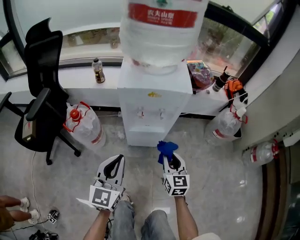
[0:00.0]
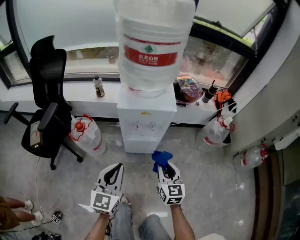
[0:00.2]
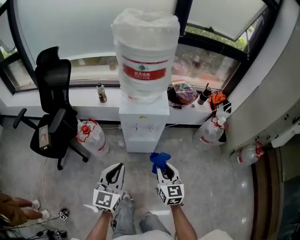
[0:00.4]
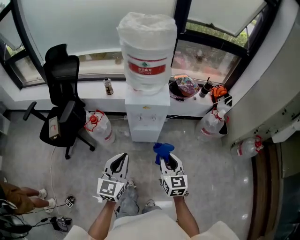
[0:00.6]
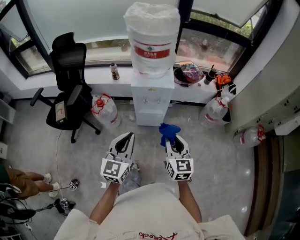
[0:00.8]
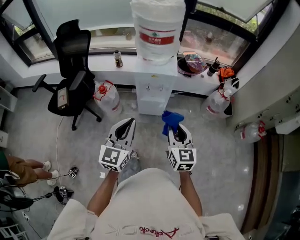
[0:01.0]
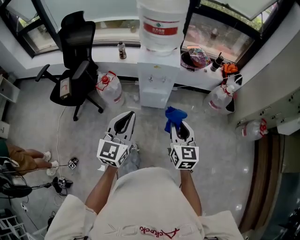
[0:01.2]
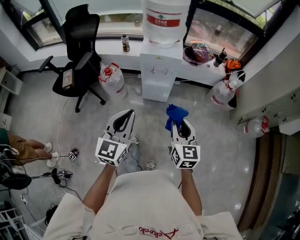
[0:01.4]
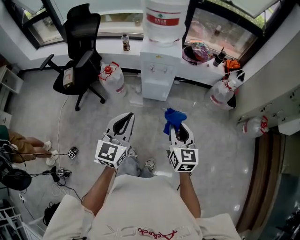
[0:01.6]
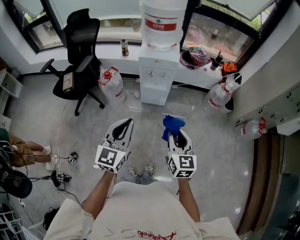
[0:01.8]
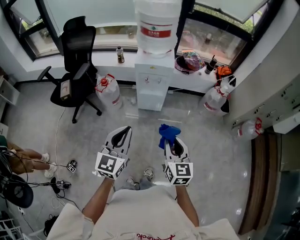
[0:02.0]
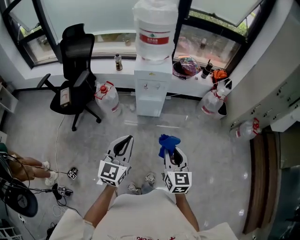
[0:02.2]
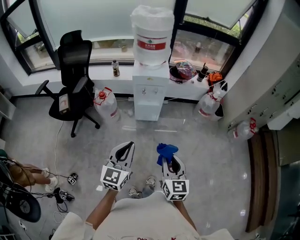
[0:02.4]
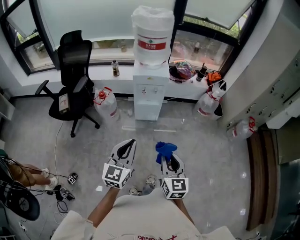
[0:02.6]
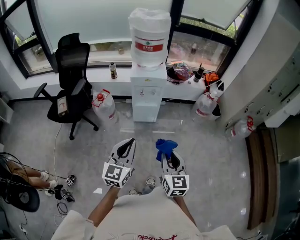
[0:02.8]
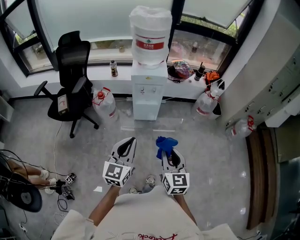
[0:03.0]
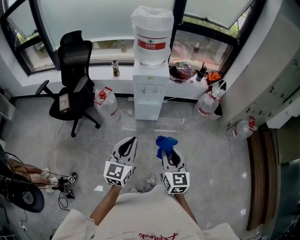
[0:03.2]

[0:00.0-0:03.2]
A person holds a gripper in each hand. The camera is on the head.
0.0 to 1.6 s: The grippers both shift upward and backward by about 40 cm.
1.6 to 3.2 s: The right gripper is displaced backward by roughly 10 cm. Meanwhile the left gripper heads backward, covering about 5 cm.

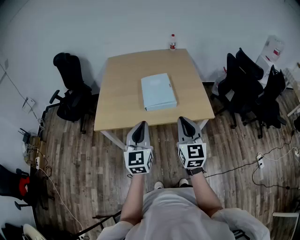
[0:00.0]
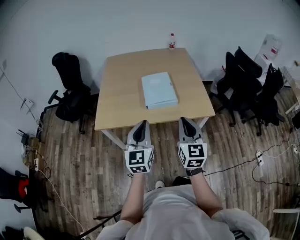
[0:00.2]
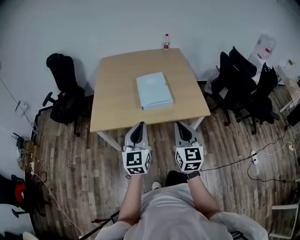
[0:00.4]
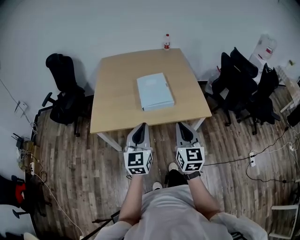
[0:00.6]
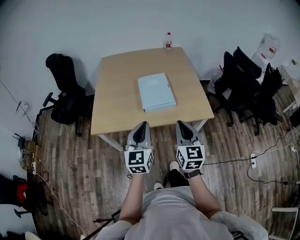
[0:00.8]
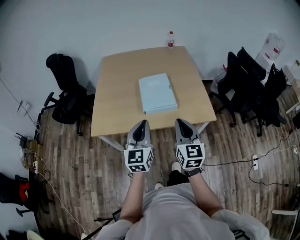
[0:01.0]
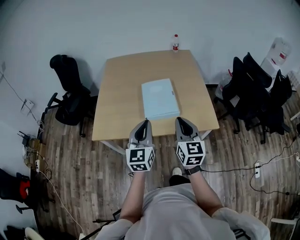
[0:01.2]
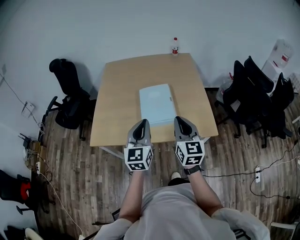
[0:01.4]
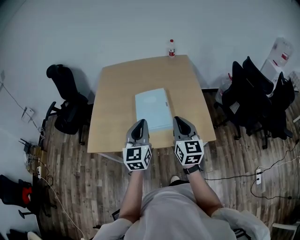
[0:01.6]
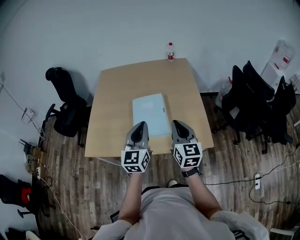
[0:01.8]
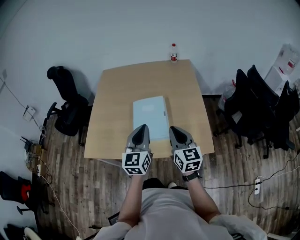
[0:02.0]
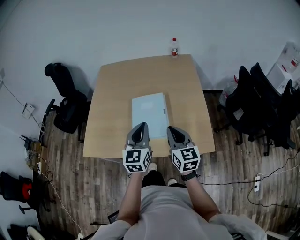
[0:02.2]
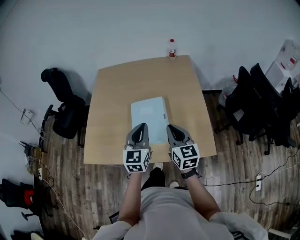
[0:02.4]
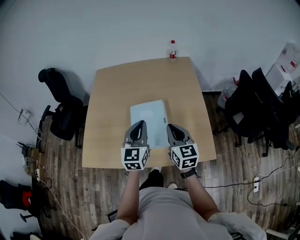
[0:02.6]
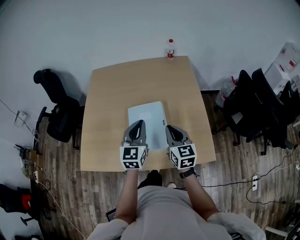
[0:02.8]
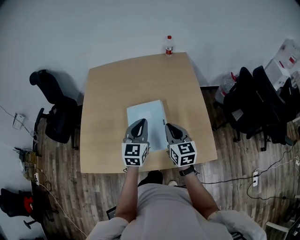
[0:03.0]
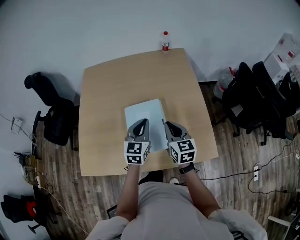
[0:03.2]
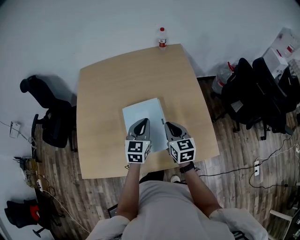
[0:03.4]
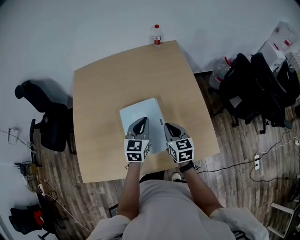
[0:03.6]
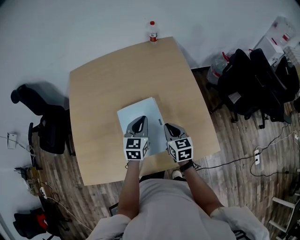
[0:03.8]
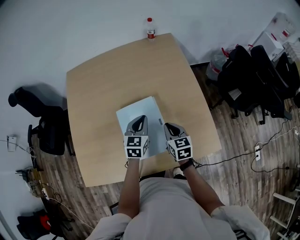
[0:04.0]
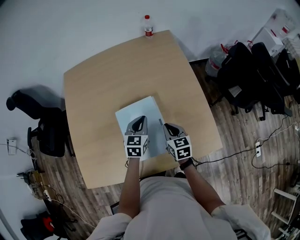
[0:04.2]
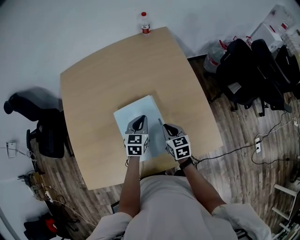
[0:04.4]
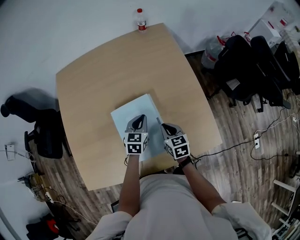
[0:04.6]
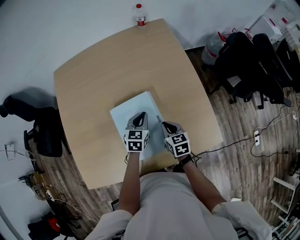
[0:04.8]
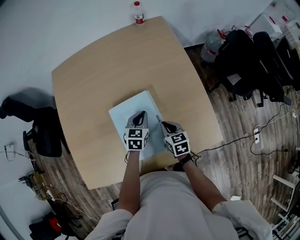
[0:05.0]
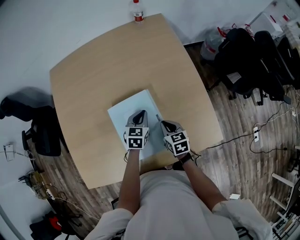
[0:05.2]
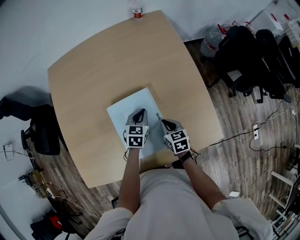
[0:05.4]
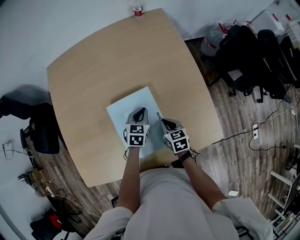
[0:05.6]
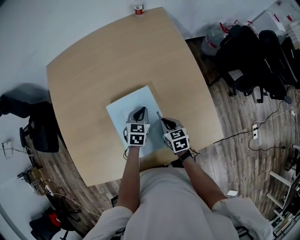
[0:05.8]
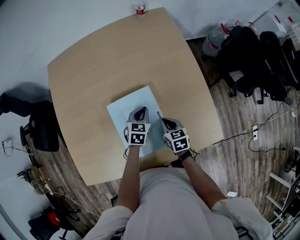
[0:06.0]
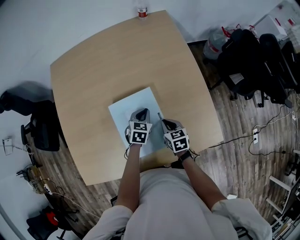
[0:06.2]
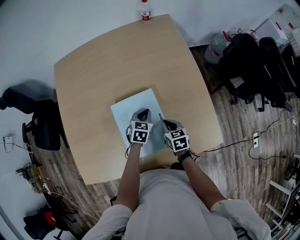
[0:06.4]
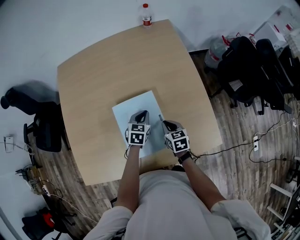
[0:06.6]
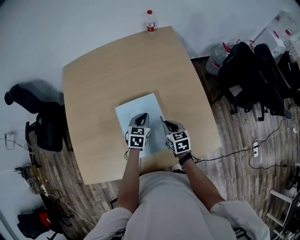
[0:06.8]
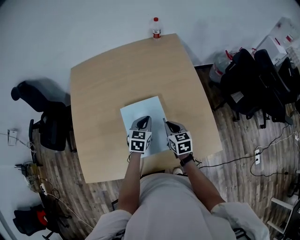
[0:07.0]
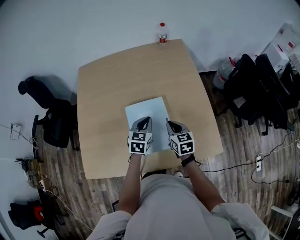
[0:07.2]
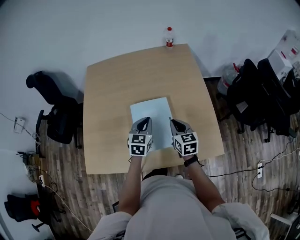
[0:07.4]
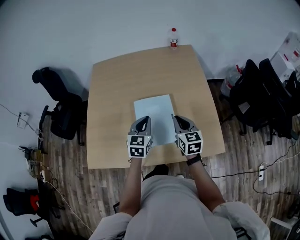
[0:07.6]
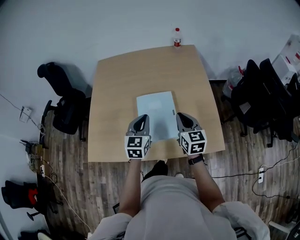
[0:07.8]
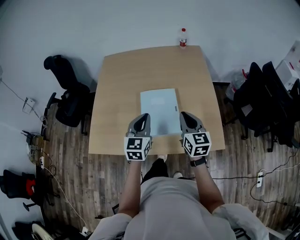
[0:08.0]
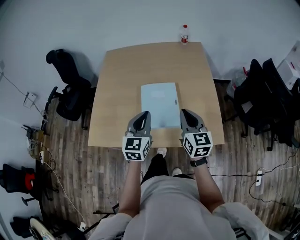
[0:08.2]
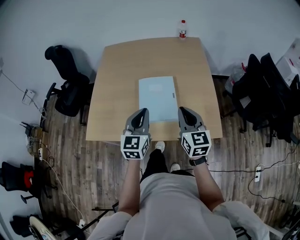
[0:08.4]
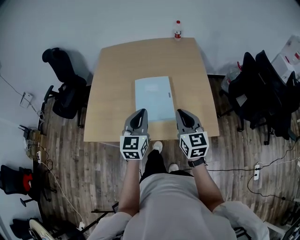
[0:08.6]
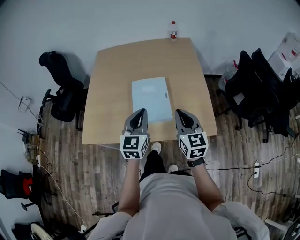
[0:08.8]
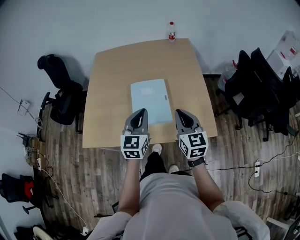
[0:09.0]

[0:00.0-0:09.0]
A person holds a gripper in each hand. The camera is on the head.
0.0 to 1.6 s: Both grippers travel together forward, roughly 20 cm.
1.6 to 3.0 s: The left gripper heads forward, covering approximately 20 cm. The right gripper moves forward and downward, some 20 cm.
3.0 to 4.4 s: The right gripper shifts some 15 cm downward, and turns by some 20 degrees, while the left gripper goes some 20 cm downward and forward, and rotates roughly 20 degrees.
4.4 to 6.0 s: The two grippers go approximately 10 cm downward.
6.0 to 7.6 s: The left gripper moves upward and backward, about 20 cm, and swivels some 30 degrees. The right gripper moves upward, roughly 20 cm, and rotates roughly 30 degrees.
7.6 to 9.0 s: Both grippers move backward and upward, some 15 cm.

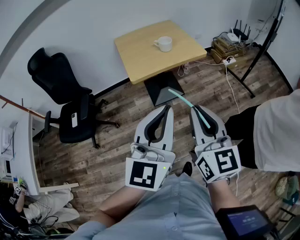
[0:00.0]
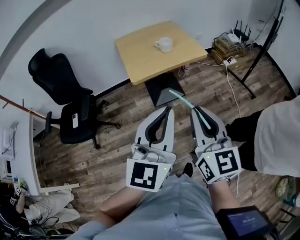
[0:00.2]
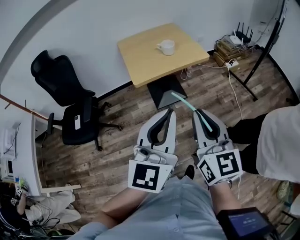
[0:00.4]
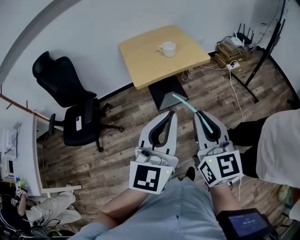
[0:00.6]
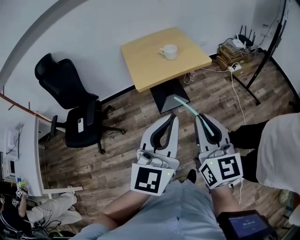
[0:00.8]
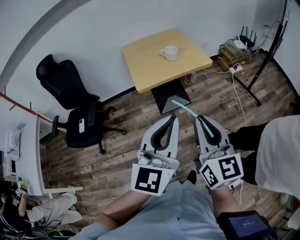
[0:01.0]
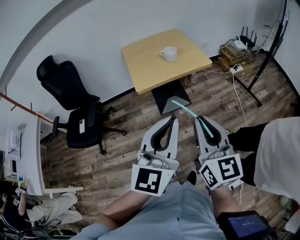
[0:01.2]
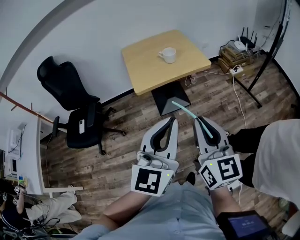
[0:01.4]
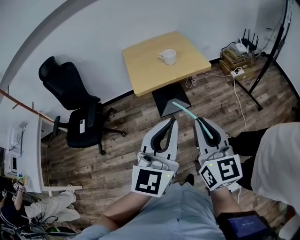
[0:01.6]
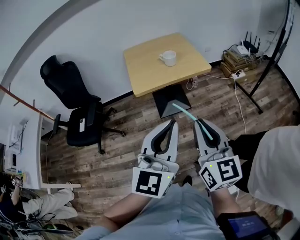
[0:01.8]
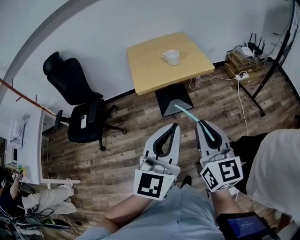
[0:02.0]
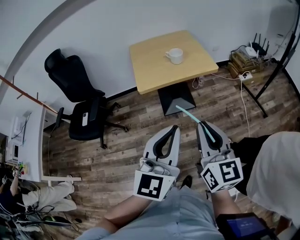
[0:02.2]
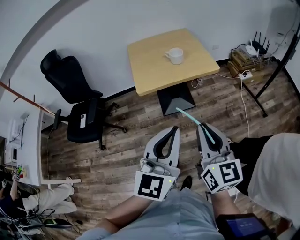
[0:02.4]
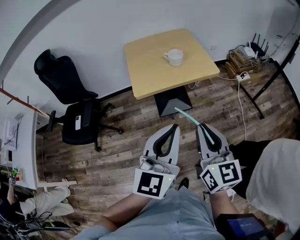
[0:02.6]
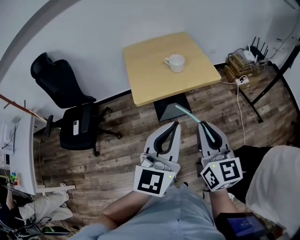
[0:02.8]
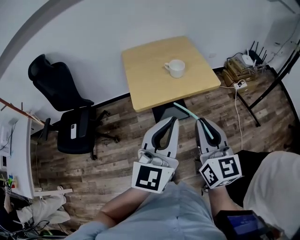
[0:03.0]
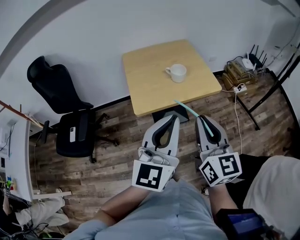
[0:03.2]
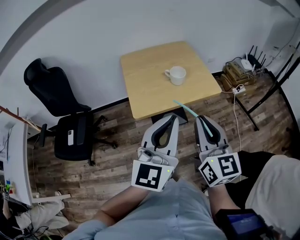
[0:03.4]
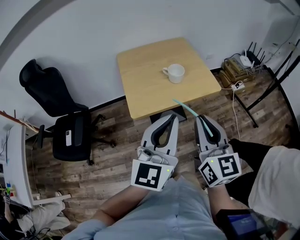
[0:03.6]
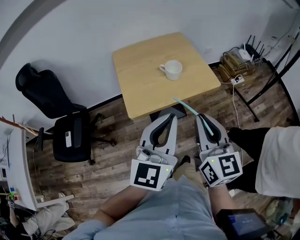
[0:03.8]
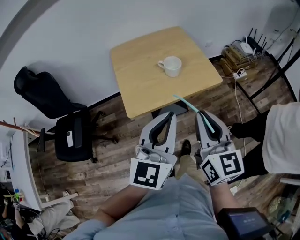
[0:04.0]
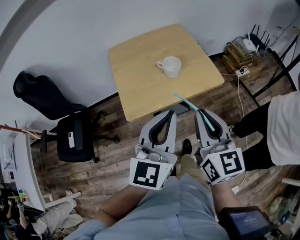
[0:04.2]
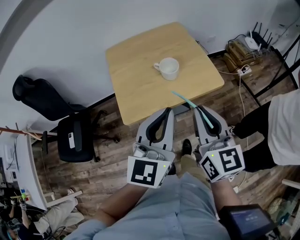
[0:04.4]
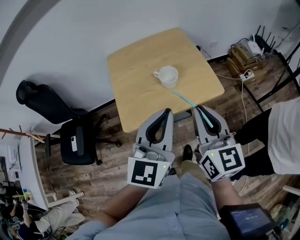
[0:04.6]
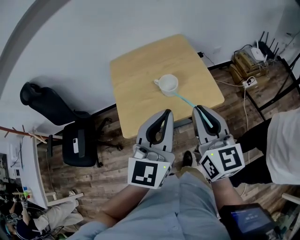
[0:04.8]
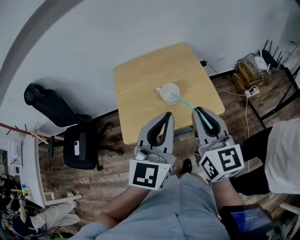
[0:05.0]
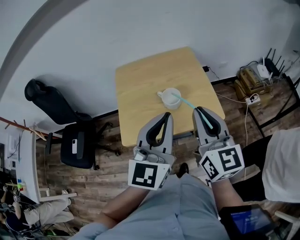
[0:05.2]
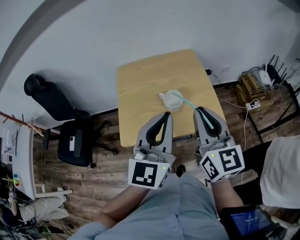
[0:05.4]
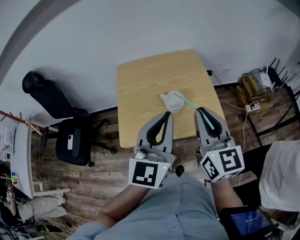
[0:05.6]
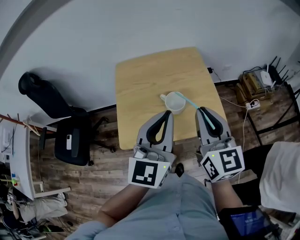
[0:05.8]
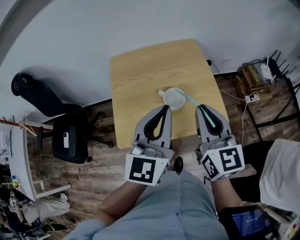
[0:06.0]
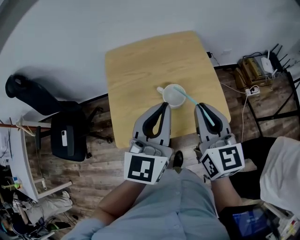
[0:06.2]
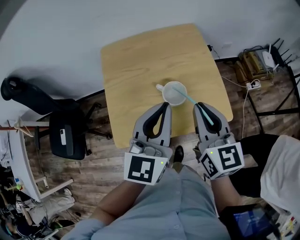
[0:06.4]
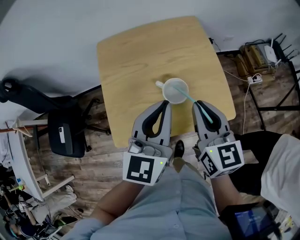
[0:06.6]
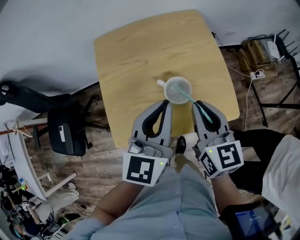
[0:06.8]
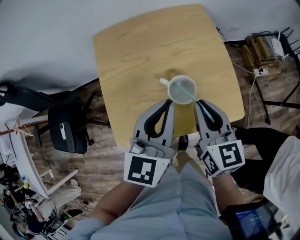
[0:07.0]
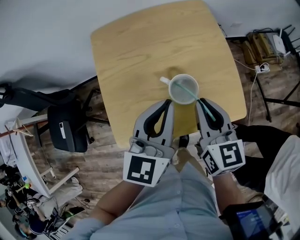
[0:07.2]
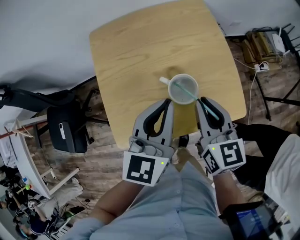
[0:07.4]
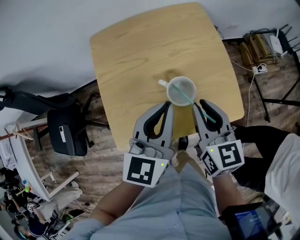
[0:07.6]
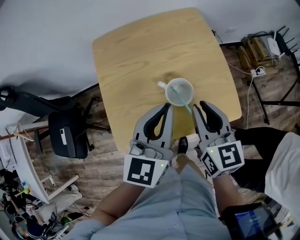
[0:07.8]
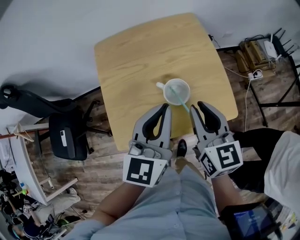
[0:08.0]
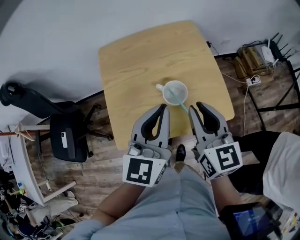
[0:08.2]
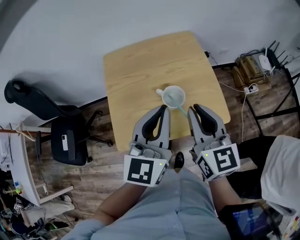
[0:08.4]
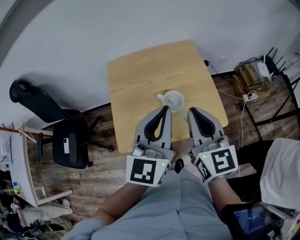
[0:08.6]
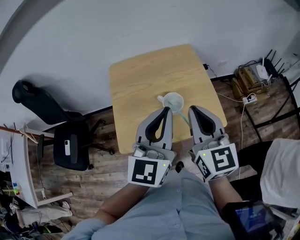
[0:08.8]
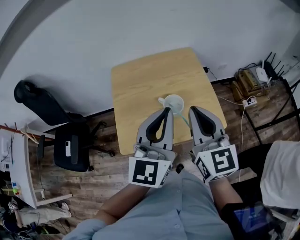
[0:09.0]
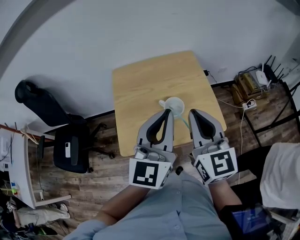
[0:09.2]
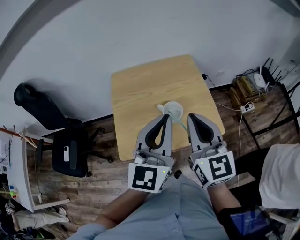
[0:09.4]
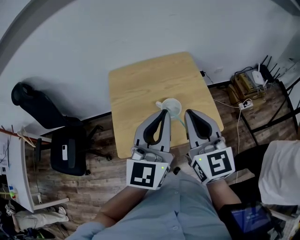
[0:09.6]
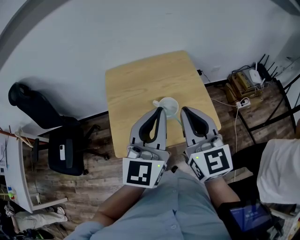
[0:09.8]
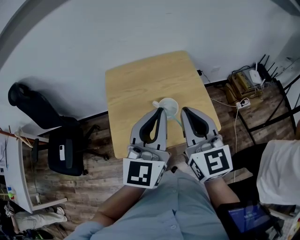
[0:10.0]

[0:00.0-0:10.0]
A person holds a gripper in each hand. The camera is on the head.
0.0 to 1.4 s: The grippers stay close to where they were, moving slightly.
1.4 to 2.8 s: The two grippers go roughly 15 cm forward.
2.8 to 4.2 s: Both grippers travel together forward, some 20 cm.
4.2 to 5.8 s: Both grippers move forward, approximately 20 cm.
5.8 to 7.2 s: The grippers both shift downward and forward by roughly 20 cm.
7.2 to 8.6 s: The grippers both shift upward and backward by about 15 cm.
8.6 to 10.0 s: The grippers move only a little.

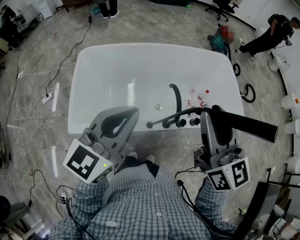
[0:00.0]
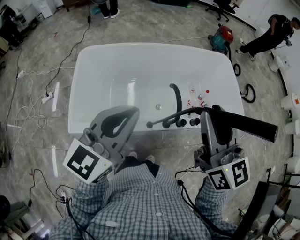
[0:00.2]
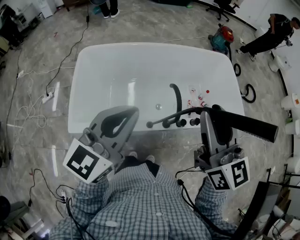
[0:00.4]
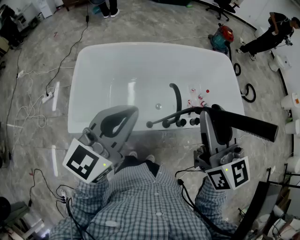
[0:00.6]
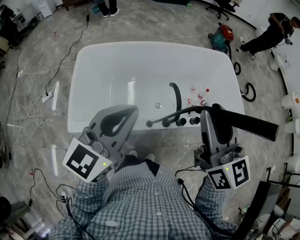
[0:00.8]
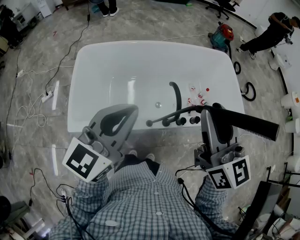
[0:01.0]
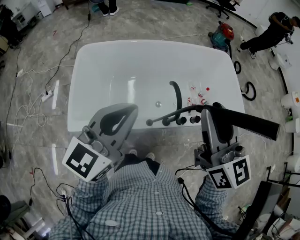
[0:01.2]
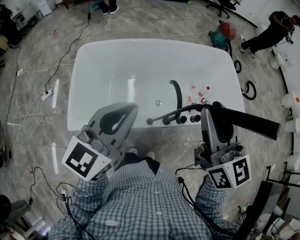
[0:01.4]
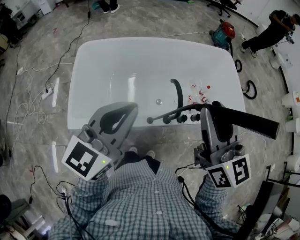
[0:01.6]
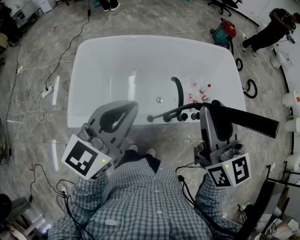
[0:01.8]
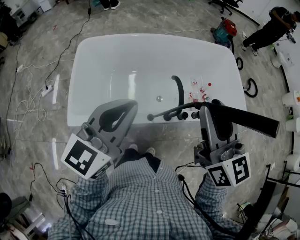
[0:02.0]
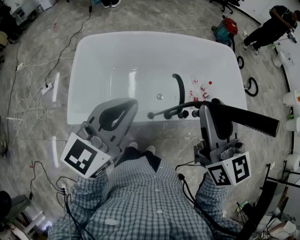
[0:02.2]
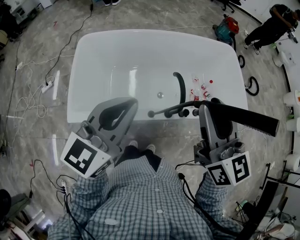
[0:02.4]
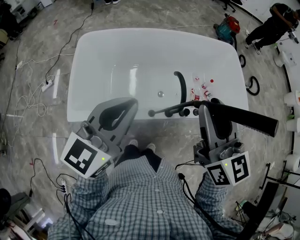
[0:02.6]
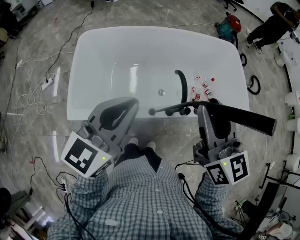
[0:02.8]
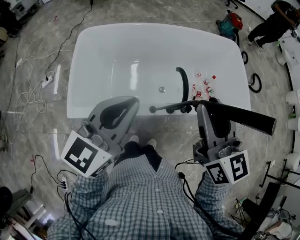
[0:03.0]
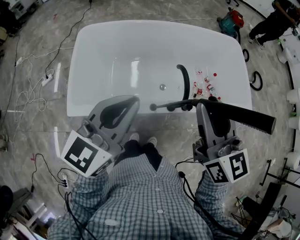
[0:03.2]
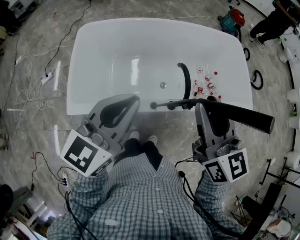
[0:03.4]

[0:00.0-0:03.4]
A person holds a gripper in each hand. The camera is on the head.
0.0 to 1.6 s: Neither gripper changes place.
1.6 to 3.4 s: The right gripper heads downward, covering about 5 cm.
